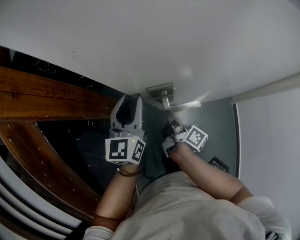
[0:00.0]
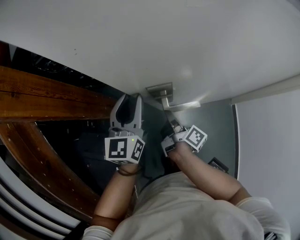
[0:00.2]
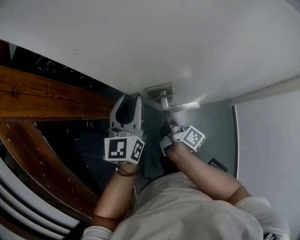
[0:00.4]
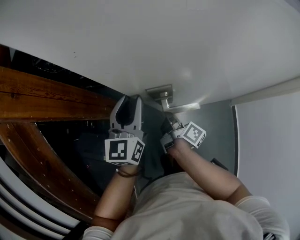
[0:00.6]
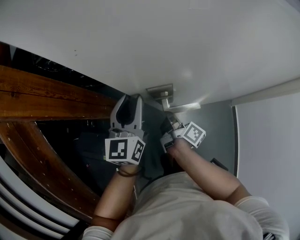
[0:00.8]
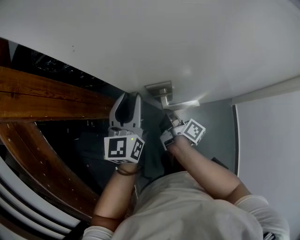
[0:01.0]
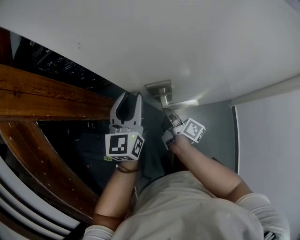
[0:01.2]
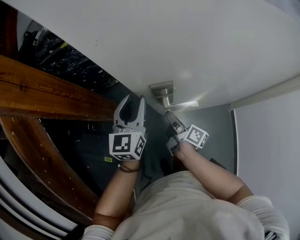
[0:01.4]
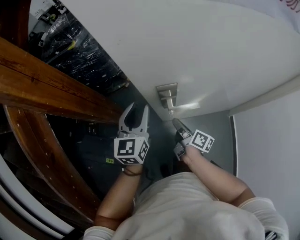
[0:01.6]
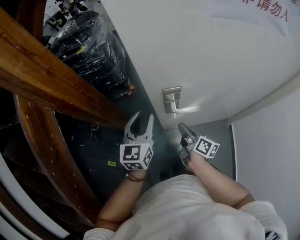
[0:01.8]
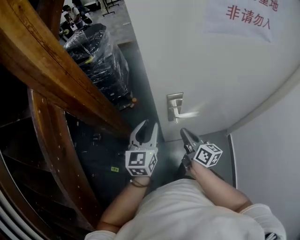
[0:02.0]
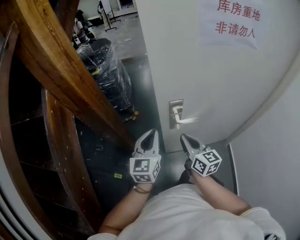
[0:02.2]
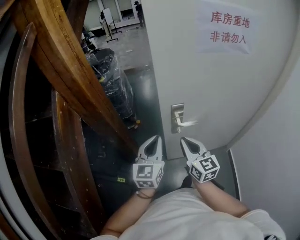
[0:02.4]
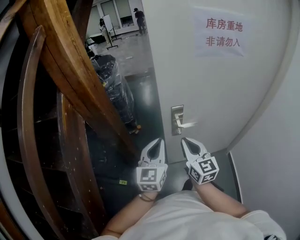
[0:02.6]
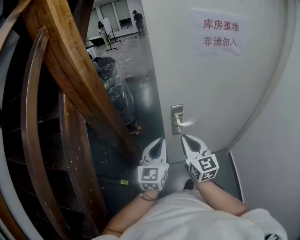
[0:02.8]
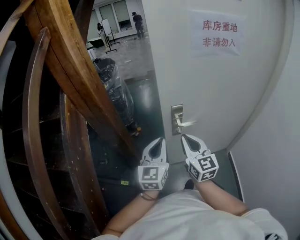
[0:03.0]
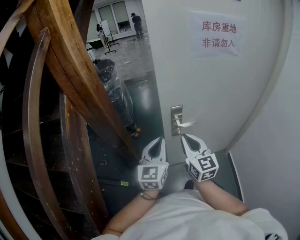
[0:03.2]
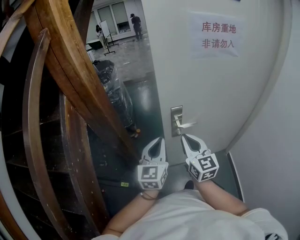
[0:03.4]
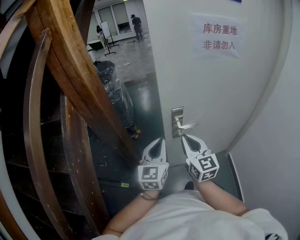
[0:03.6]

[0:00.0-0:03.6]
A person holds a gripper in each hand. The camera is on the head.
0:00.0 to 0:01.8: The grippers both shift backward by approximately 5 cm. The right gripper swivels about 30 degrees.
0:01.8 to 0:03.6: The right gripper heads upward and backward, covering about 30 cm, and rolls counterclockwise, seen from behind, by about 60 degrees, while the left gripper moves backward and upward, approximately 20 cm, and closes up.

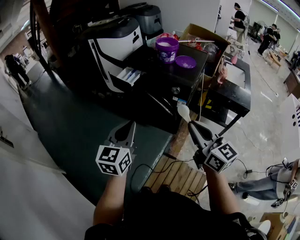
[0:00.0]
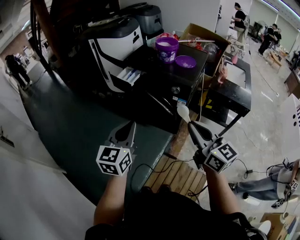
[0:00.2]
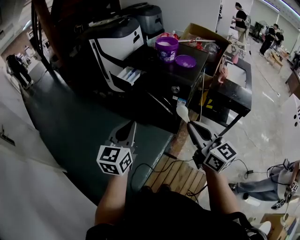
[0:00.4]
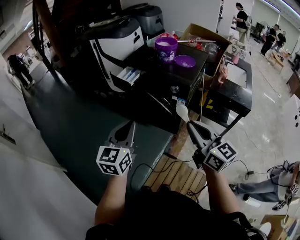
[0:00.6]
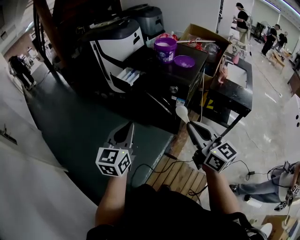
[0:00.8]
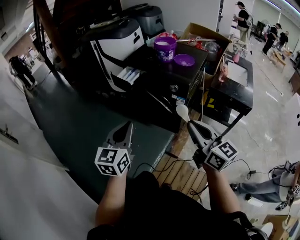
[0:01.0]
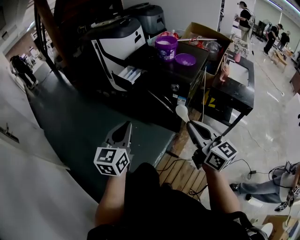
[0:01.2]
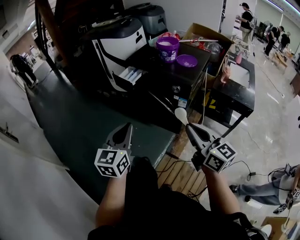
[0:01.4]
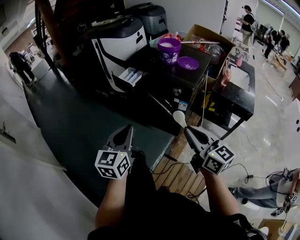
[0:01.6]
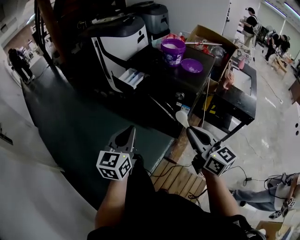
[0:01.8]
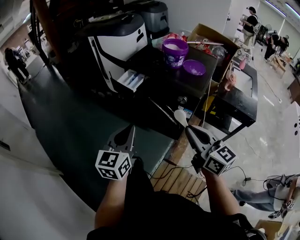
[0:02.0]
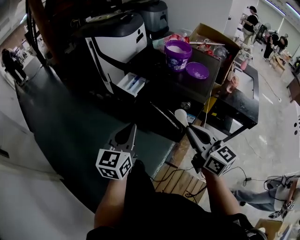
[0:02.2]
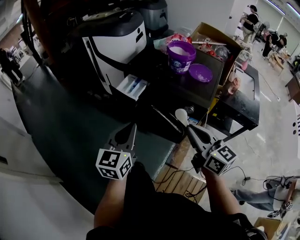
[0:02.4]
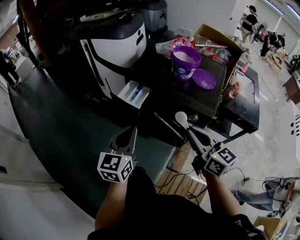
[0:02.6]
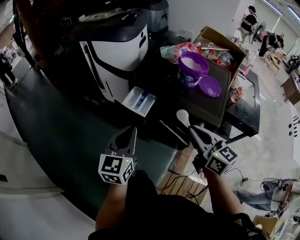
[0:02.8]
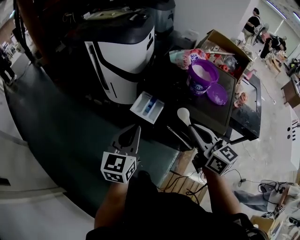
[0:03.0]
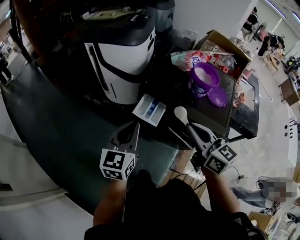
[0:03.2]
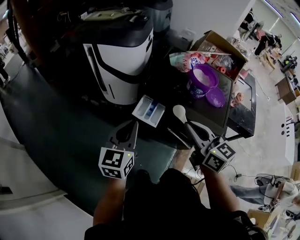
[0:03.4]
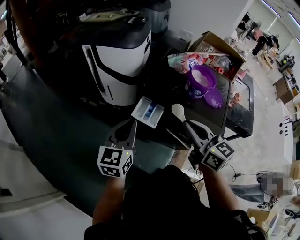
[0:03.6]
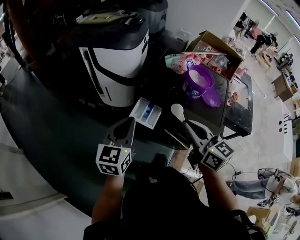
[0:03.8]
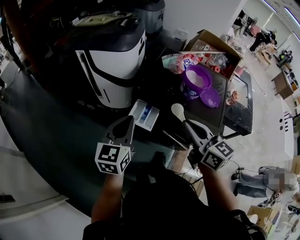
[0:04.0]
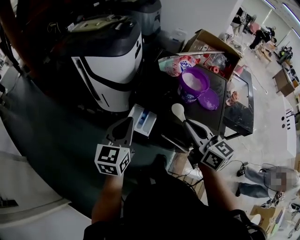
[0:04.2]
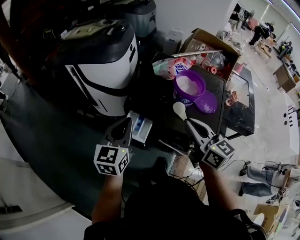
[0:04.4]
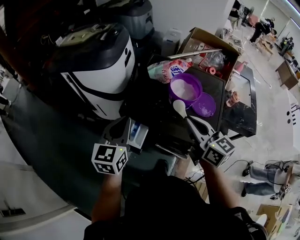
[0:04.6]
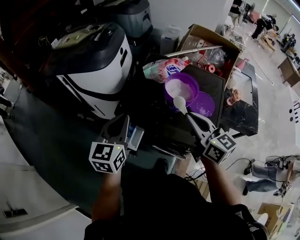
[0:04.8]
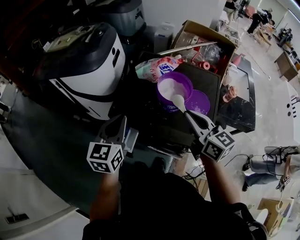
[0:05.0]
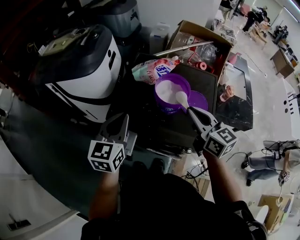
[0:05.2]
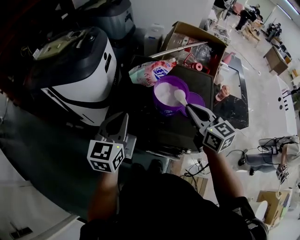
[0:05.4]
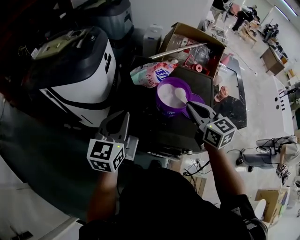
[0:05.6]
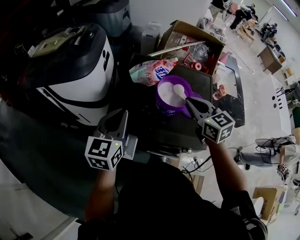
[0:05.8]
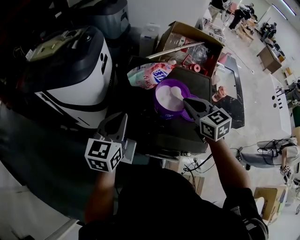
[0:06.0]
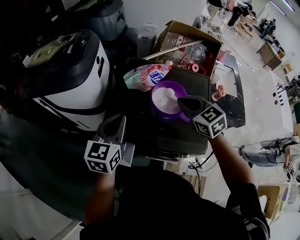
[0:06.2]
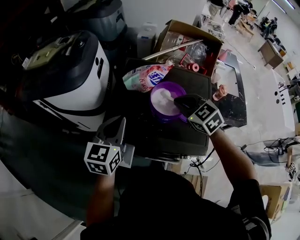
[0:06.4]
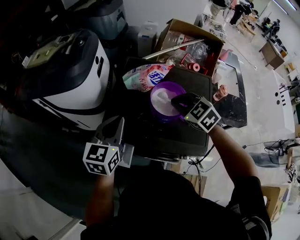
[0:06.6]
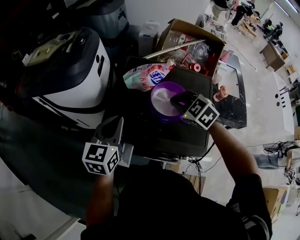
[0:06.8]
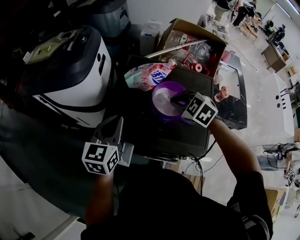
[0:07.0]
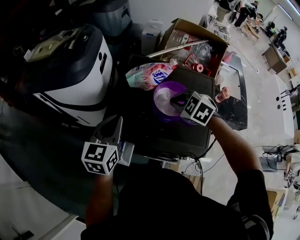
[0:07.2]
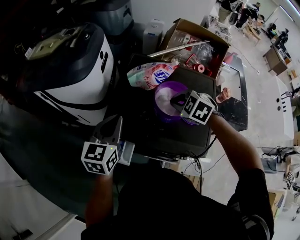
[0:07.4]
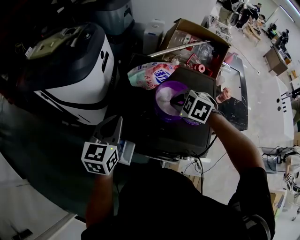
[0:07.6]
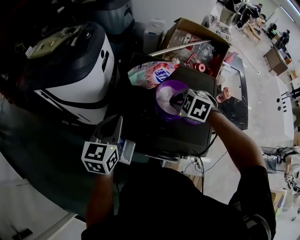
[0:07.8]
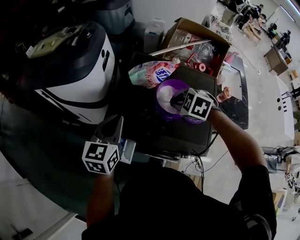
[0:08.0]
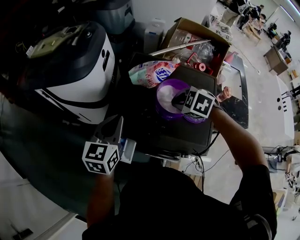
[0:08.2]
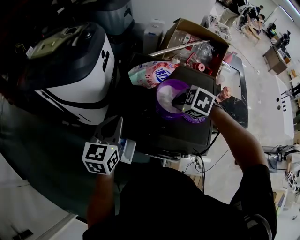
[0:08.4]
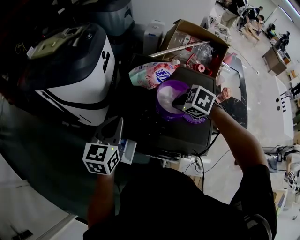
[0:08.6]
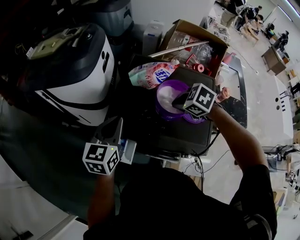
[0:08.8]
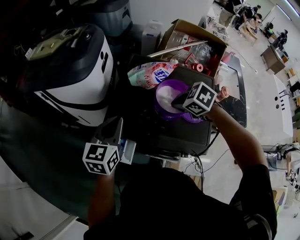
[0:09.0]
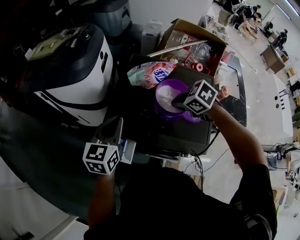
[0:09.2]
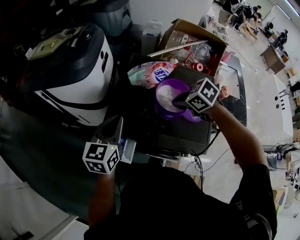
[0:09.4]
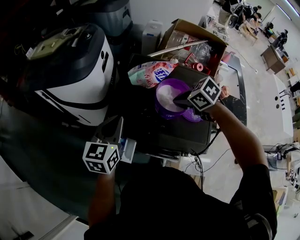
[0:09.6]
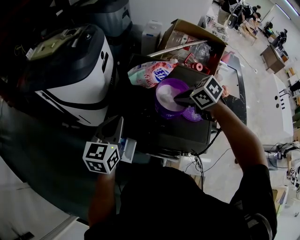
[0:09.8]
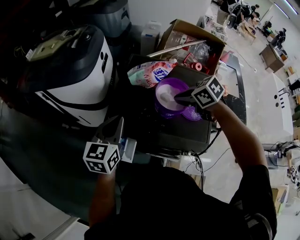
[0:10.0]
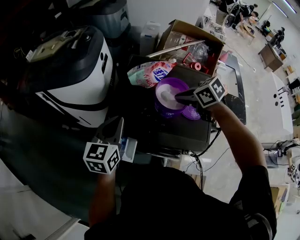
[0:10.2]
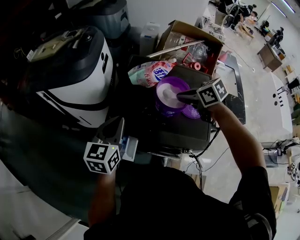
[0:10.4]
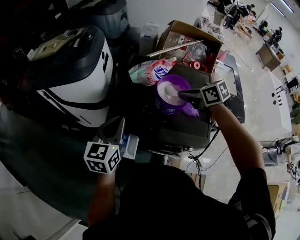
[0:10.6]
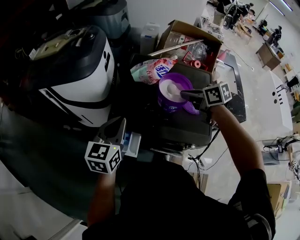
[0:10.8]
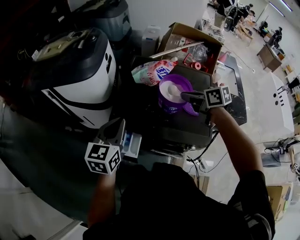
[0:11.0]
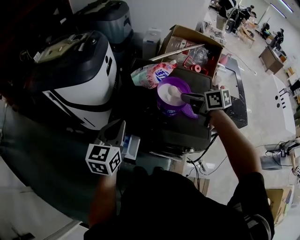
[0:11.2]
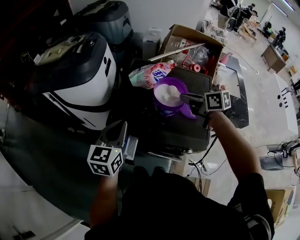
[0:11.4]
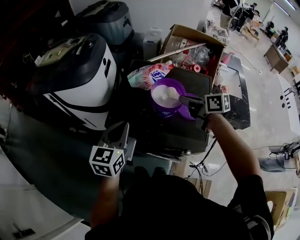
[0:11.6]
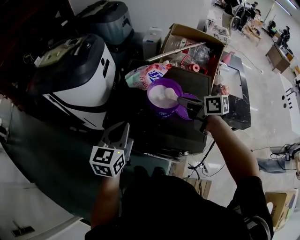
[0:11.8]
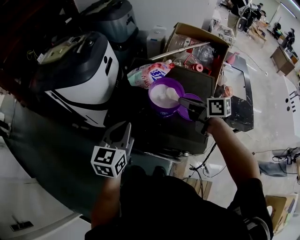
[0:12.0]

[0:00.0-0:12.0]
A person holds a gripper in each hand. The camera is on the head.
0:00.0 to 0:01.6: The grippers make only small movements.
0:01.6 to 0:03.0: The two grippers go some 35 cm forward.
0:03.0 to 0:04.4: Both grippers move forward, some 10 cm.
0:04.4 to 0:06.0: The two grippers go approximately 20 cm forward and to the right. The right gripper changes its angle by some 30 degrees.
0:06.0 to 0:07.6: The right gripper shifts some 10 cm downward, and tips its fingers downward by roughly 30 degrees.
0:07.6 to 0:09.0: The right gripper changes its angle by roughly 20 degrees.
0:09.0 to 0:10.4: The right gripper swivels about 30 degrees.
0:10.4 to 0:12.0: The right gripper changes place by some 5 cm, and turns by approximately 30 degrees; the left gripper travels to the right and backward by about 10 cm.

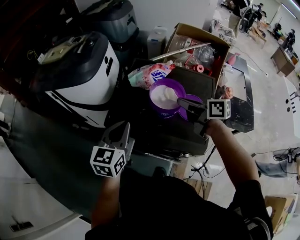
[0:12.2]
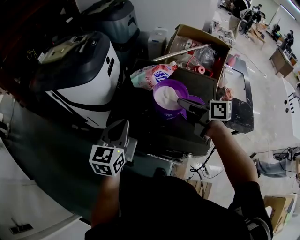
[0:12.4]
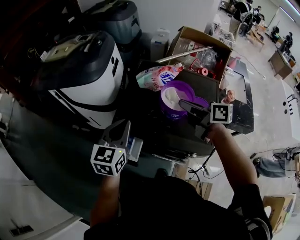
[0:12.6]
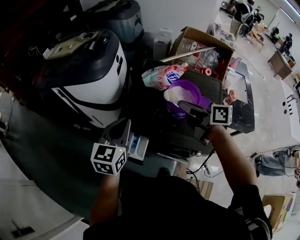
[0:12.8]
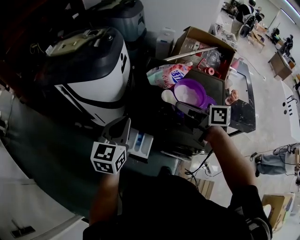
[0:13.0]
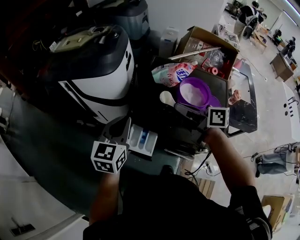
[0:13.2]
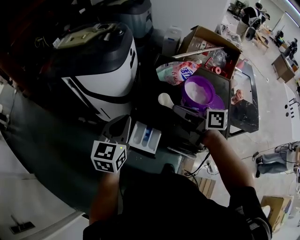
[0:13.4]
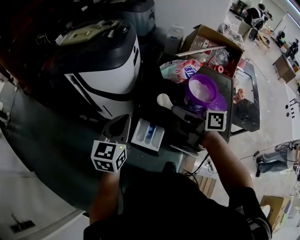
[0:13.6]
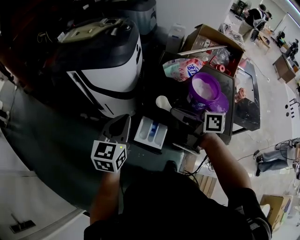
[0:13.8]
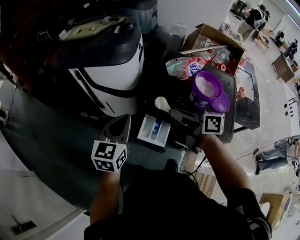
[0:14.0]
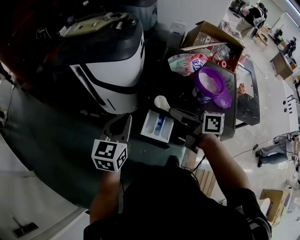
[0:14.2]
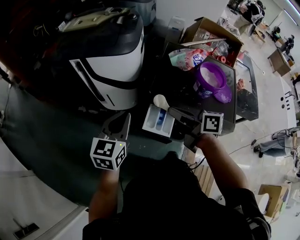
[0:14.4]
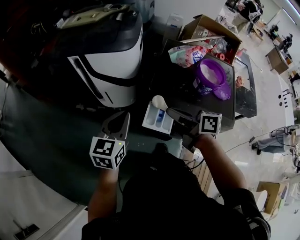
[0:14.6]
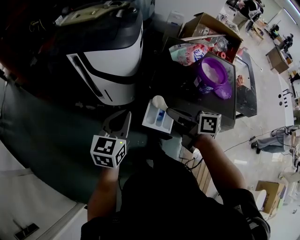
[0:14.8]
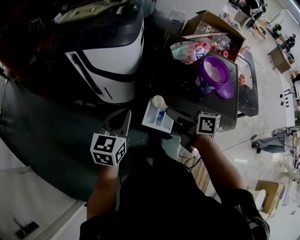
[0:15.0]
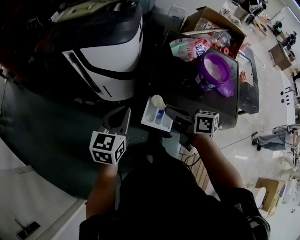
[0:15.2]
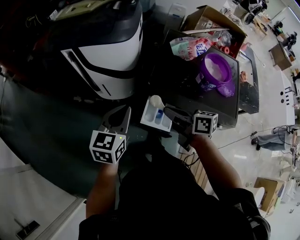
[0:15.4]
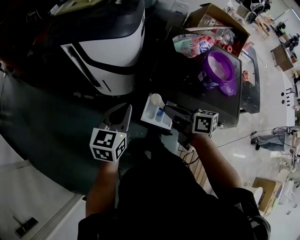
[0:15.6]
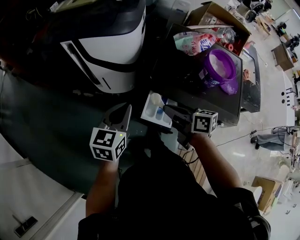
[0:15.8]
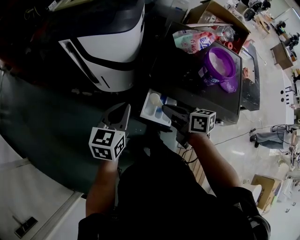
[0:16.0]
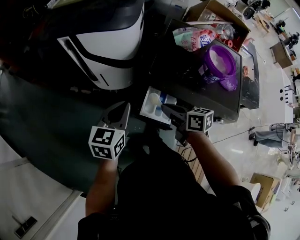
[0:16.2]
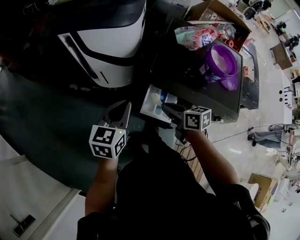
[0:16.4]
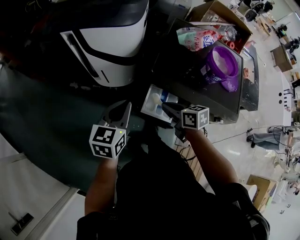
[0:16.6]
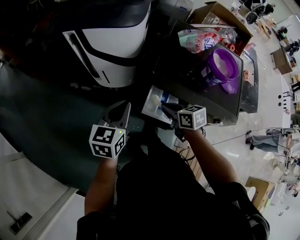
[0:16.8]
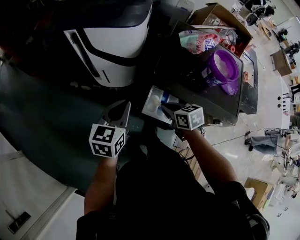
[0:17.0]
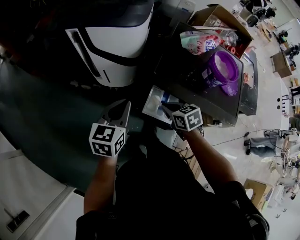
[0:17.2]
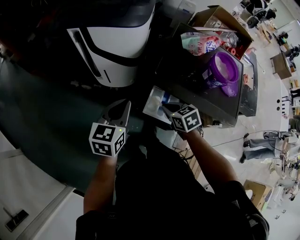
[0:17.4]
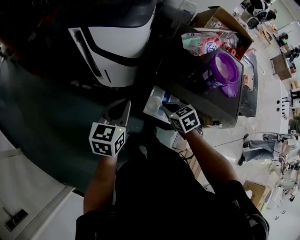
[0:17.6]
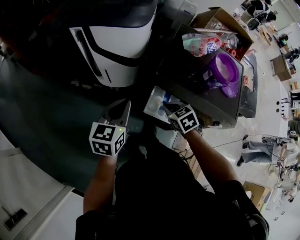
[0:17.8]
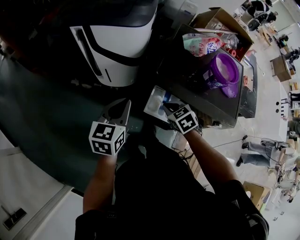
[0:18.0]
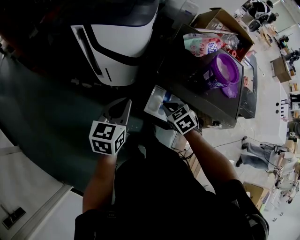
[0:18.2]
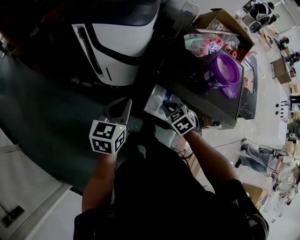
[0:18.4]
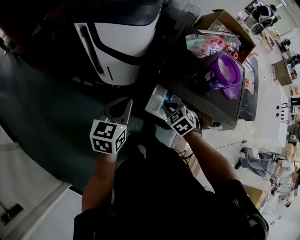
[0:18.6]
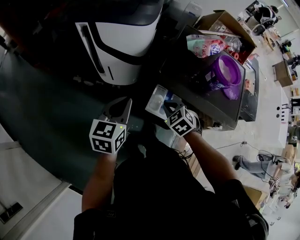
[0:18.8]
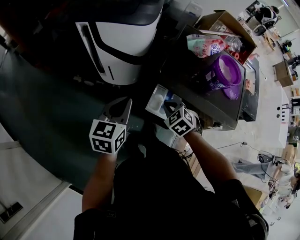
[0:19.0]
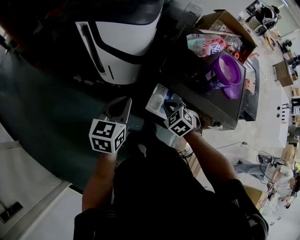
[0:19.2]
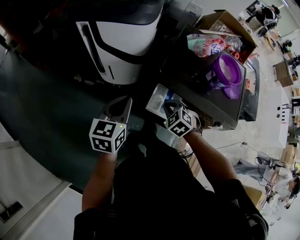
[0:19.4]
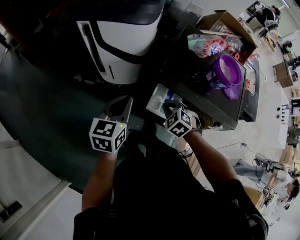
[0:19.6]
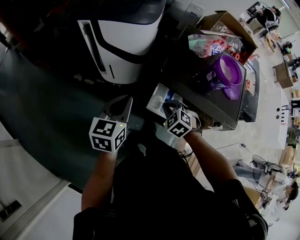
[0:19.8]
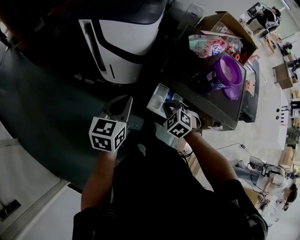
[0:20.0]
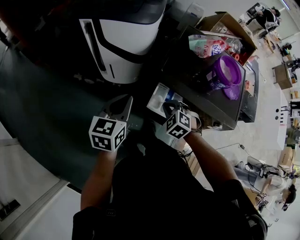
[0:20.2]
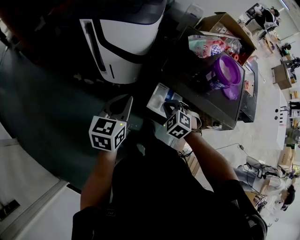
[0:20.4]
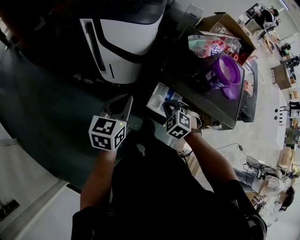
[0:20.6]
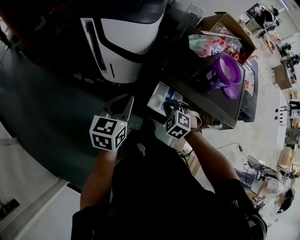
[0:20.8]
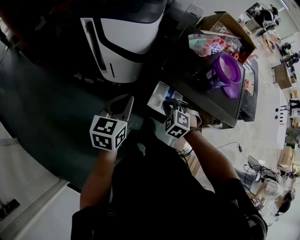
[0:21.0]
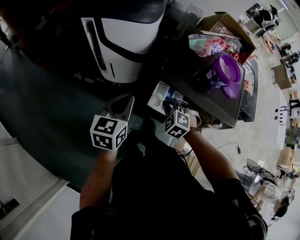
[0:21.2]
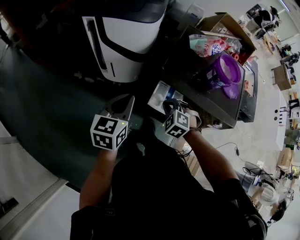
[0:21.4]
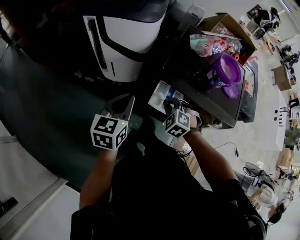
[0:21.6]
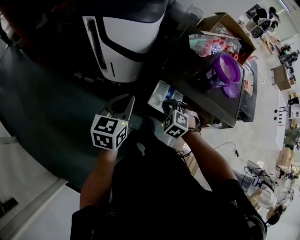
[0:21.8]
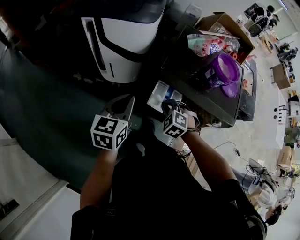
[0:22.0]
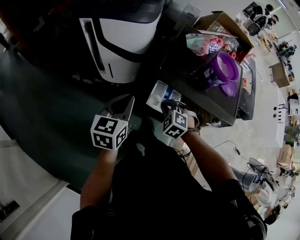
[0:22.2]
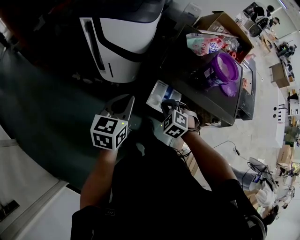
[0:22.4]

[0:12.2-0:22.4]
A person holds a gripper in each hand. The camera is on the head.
0:12.2 to 0:13.6: The two grippers go approximately 20 cm to the left.
0:13.6 to 0:15.2: The grippers both shift to the left and downward by some 10 cm.
0:15.2 to 0:16.6: The right gripper shifts roughly 10 cm downward, and swivels roughly 20 degrees.
0:16.6 to 0:18.0: The right gripper changes its angle by roughly 40 degrees.
0:18.0 to 0:19.4: The right gripper turns by approximately 20 degrees.
0:19.4 to 0:21.0: The grippers stay close to where they were, moving slightly.
0:21.0 to 0:22.4: Both grippers stay put.
